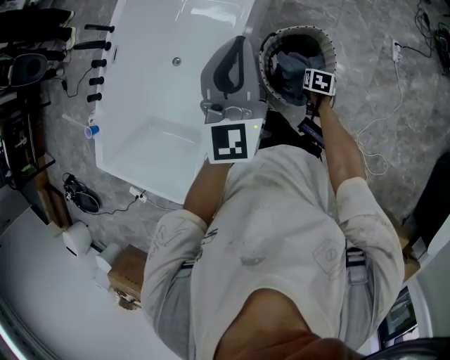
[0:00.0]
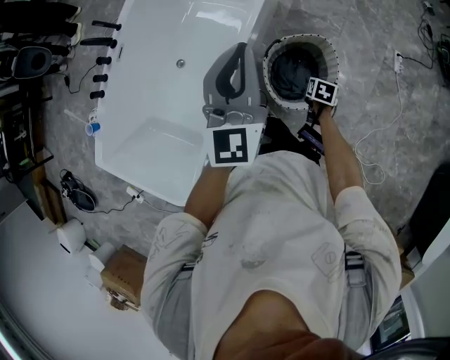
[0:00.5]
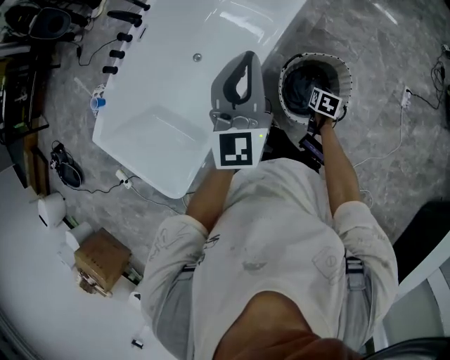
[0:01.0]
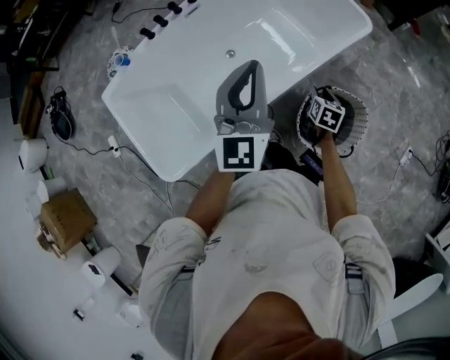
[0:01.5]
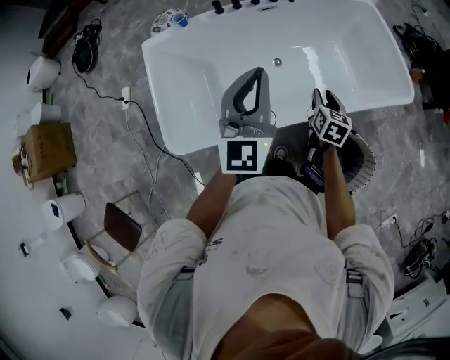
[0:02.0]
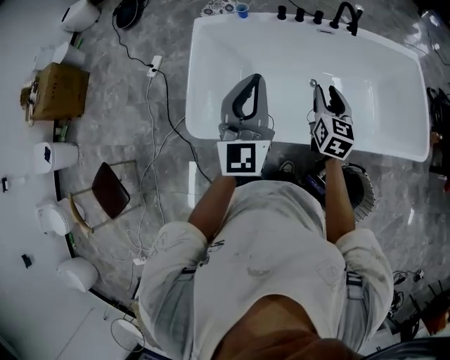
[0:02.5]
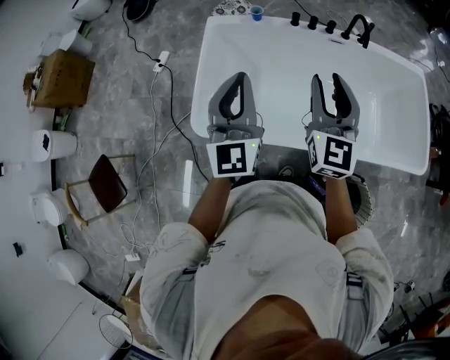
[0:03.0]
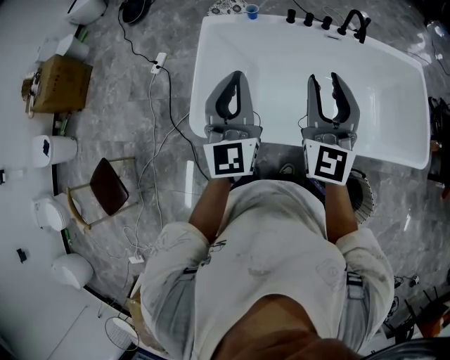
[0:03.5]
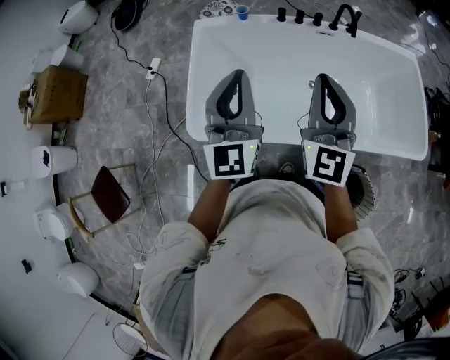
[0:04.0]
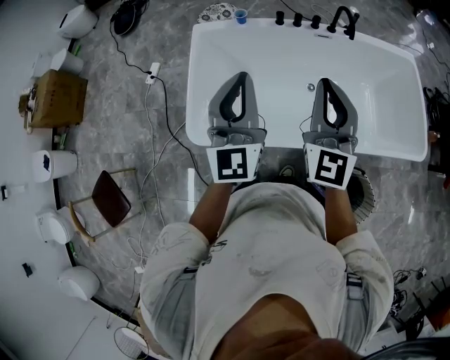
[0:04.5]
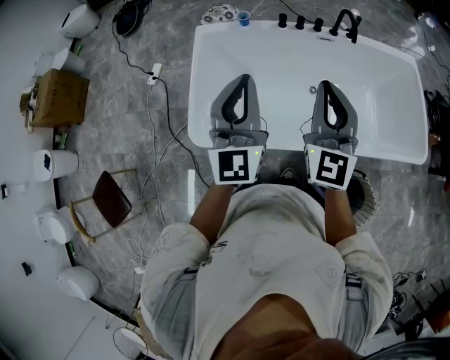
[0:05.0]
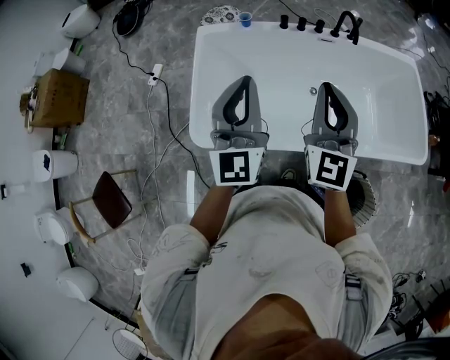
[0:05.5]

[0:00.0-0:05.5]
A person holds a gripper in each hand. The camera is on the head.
0:00.0 to 0:02.0: The right gripper moves approximately 50 cm, and angles its fingers upward, by about 30 degrees, while the left gripper changes place by approximately 35 cm, and swivels roughly 50 degrees.
0:02.0 to 0:03.5: The left gripper ends up about 25 cm from where it was, and swivels approximately 30 degrees. The right gripper goes about 30 cm upward, and angles its fingers upward, by about 40 degrees.
0:03.5 to 0:05.5: The grippers make only small movements.

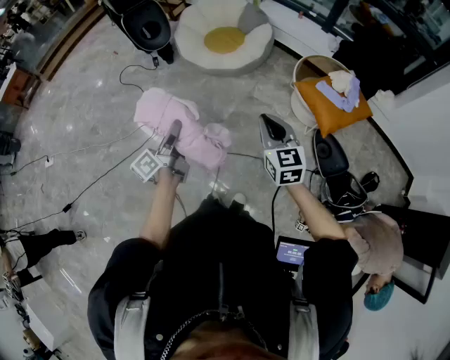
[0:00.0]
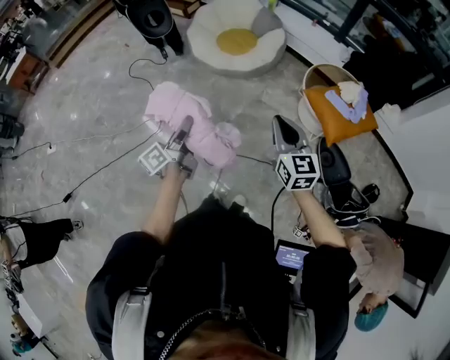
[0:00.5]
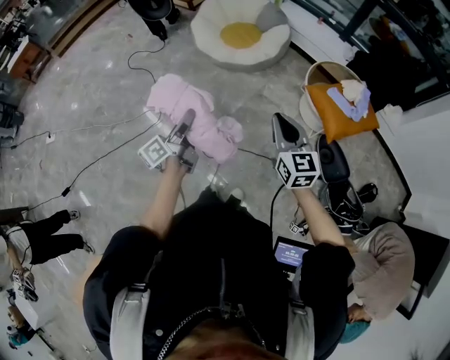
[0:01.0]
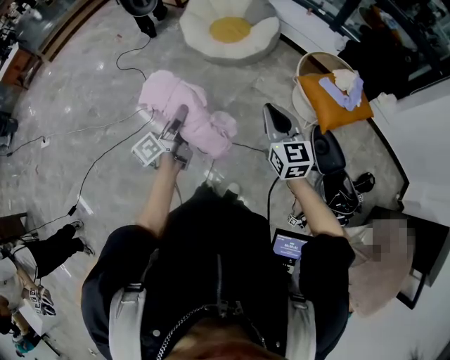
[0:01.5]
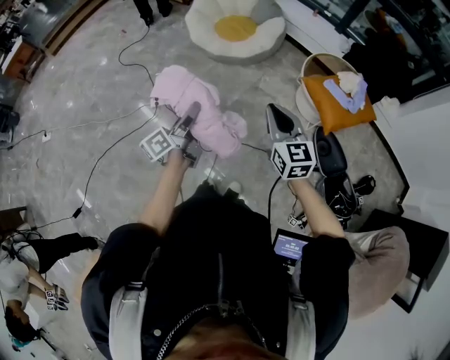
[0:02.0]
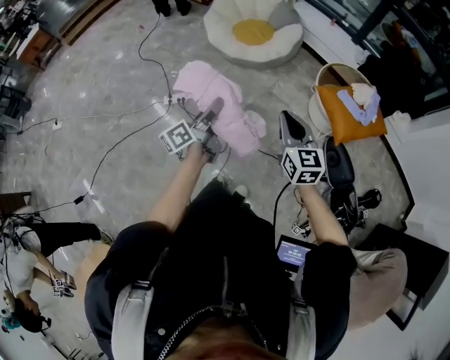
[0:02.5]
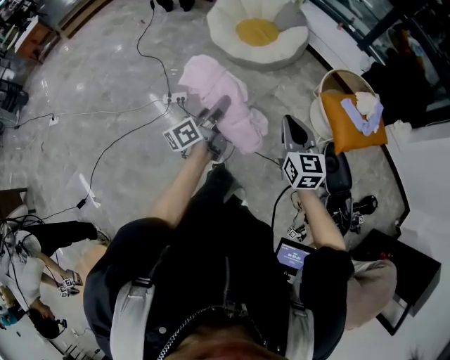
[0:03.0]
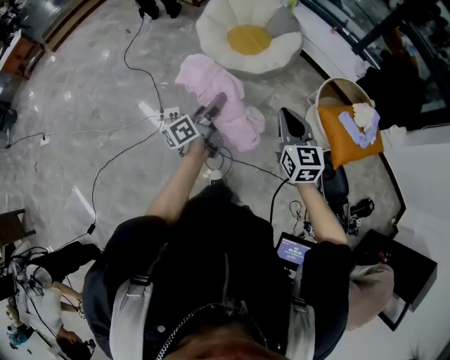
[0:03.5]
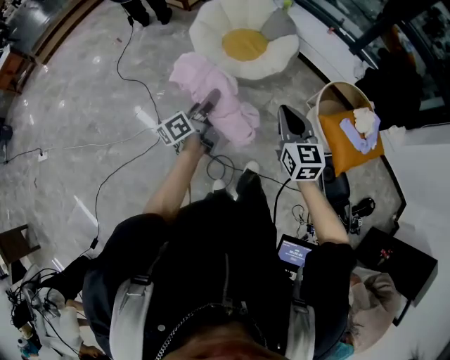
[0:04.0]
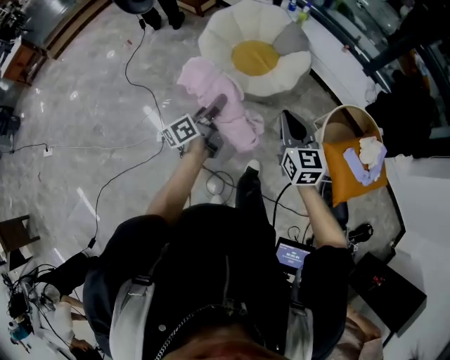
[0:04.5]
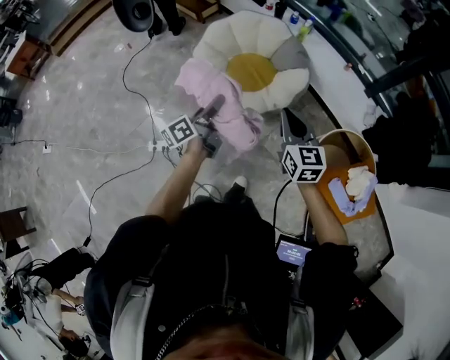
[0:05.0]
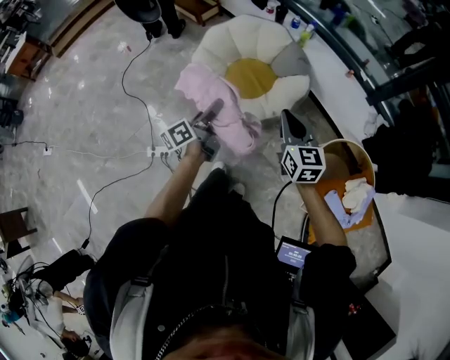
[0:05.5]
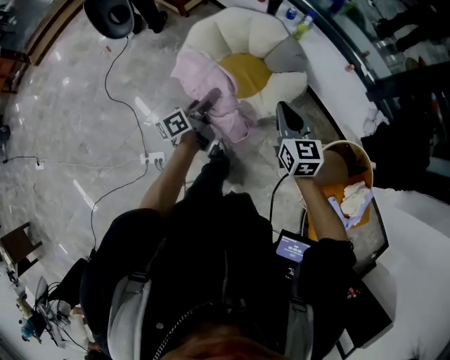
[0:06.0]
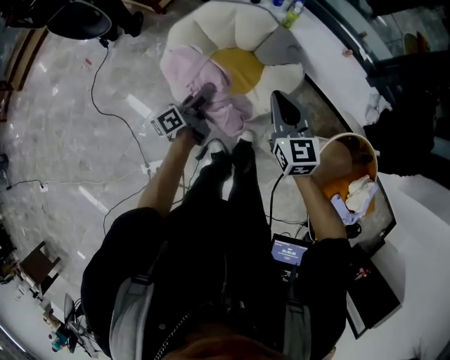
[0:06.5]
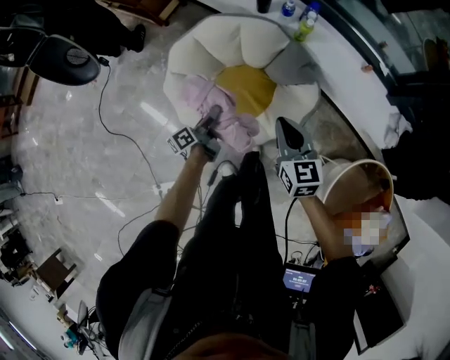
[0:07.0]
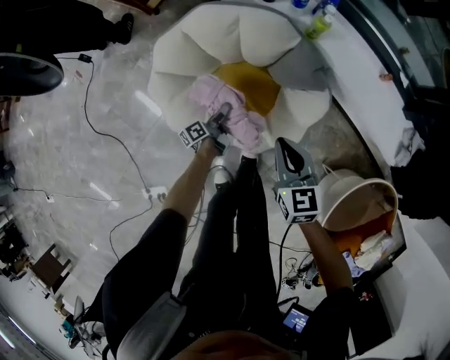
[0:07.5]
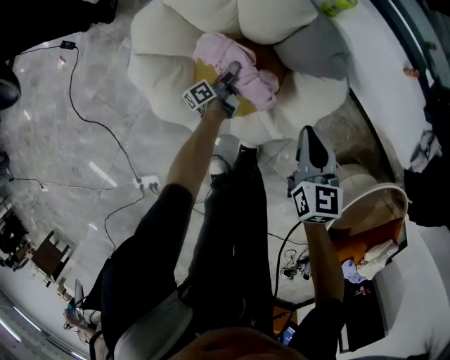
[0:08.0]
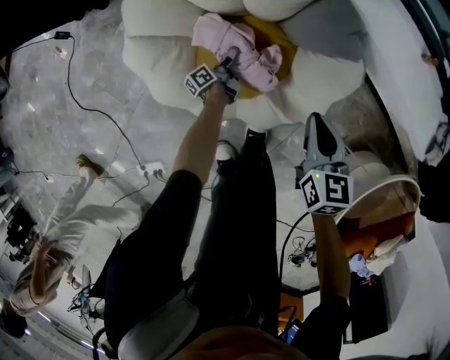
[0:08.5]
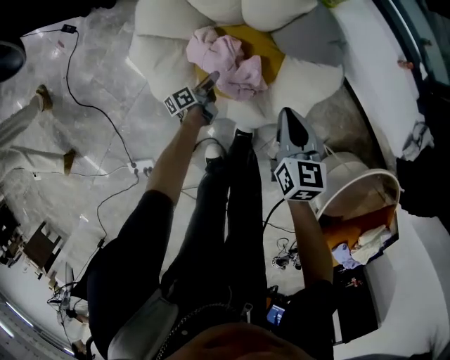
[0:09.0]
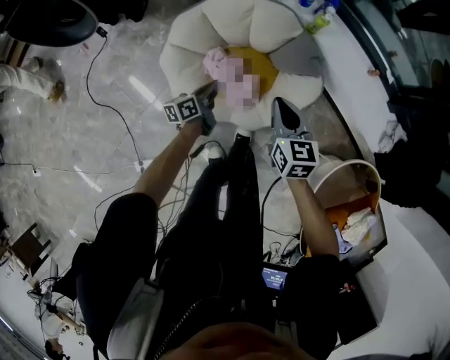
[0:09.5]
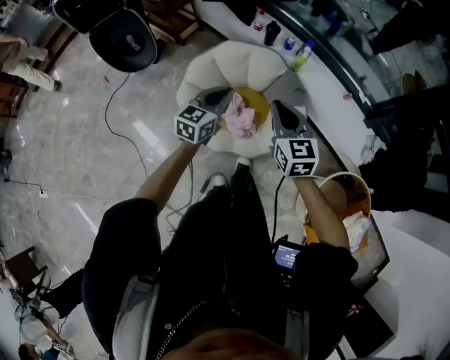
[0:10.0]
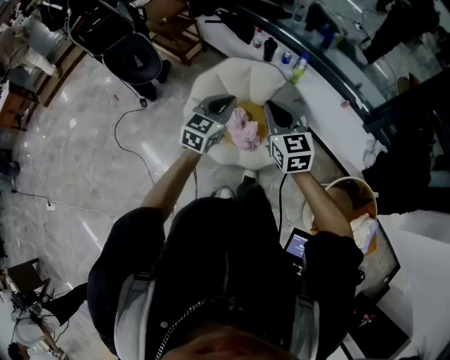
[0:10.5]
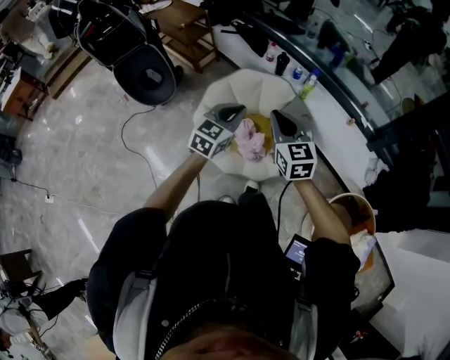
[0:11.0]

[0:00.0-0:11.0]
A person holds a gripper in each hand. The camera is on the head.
0:00.0 to 0:02.0: The left gripper travels to the right by some 5 cm.
0:02.0 to 0:03.5: The two grippers go roughly 20 cm forward.
0:03.5 to 0:05.5: Both grippers are carried forward, about 40 cm.
0:05.5 to 0:07.5: The left gripper travels downward and forward by approximately 70 cm, and swivels about 20 degrees. The right gripper goes about 50 cm forward and downward.
0:07.5 to 0:09.0: Both grippers move downward, approximately 10 cm.
0:09.0 to 0:11.0: Both grippers move upward, approximately 60 cm. The left gripper rolls clockwise, seen from behind, by approximately 80 degrees, and closes; the right gripper turns by approximately 30 degrees.

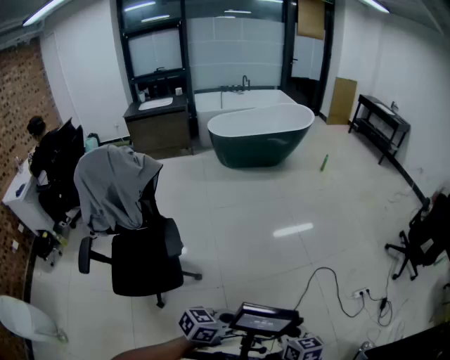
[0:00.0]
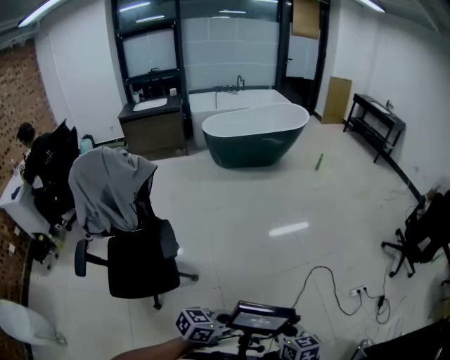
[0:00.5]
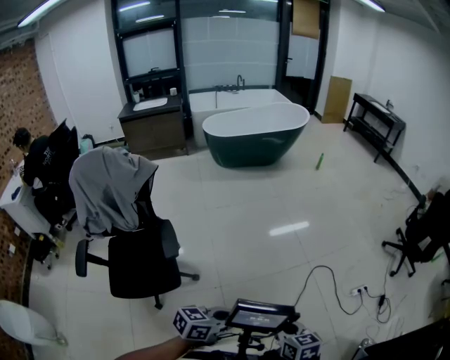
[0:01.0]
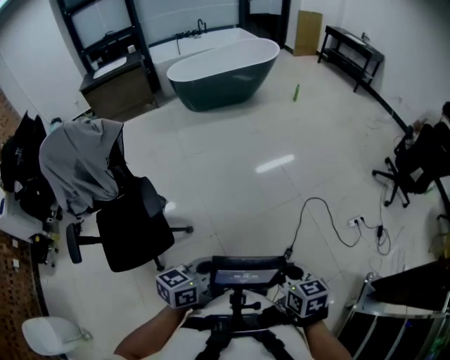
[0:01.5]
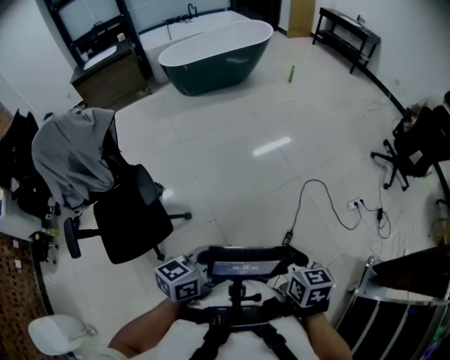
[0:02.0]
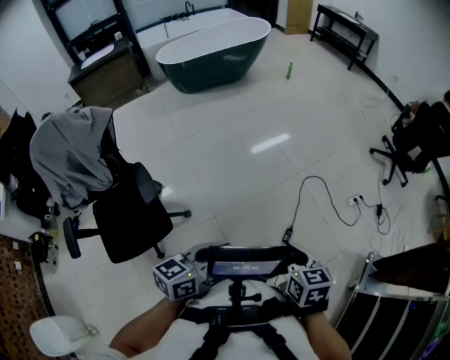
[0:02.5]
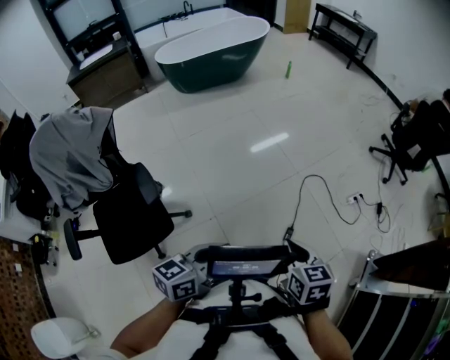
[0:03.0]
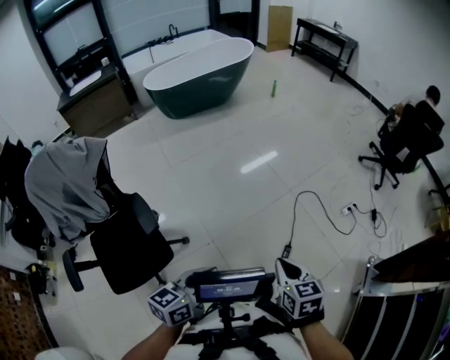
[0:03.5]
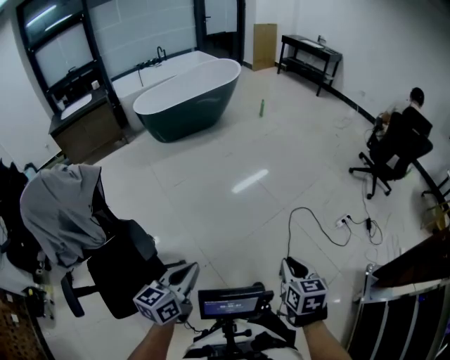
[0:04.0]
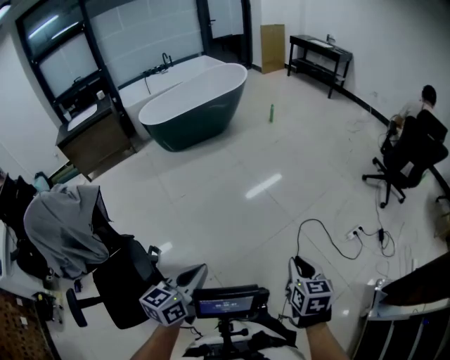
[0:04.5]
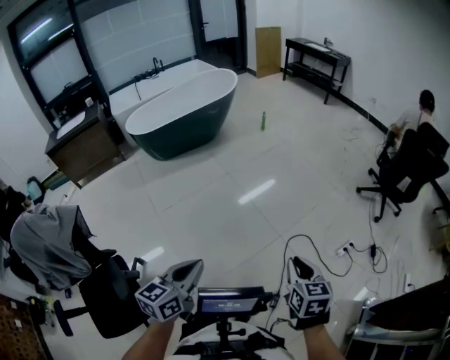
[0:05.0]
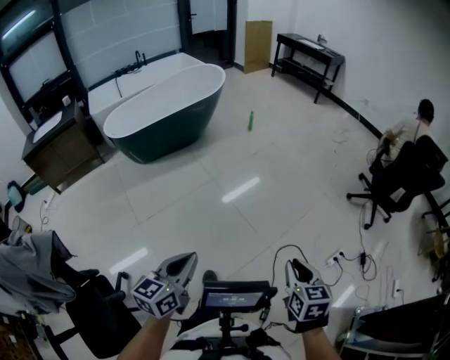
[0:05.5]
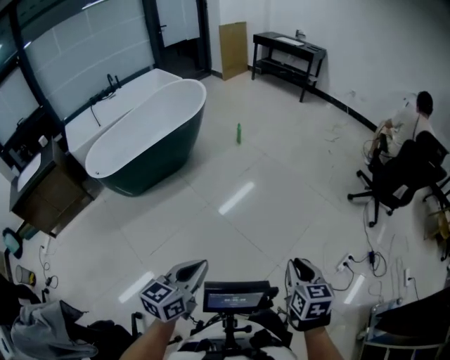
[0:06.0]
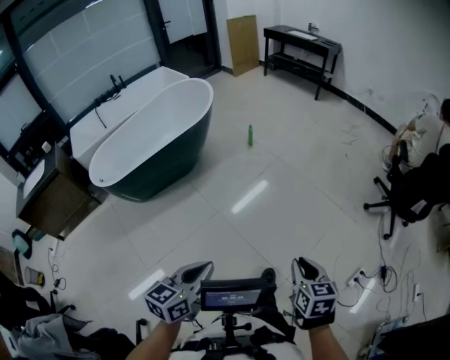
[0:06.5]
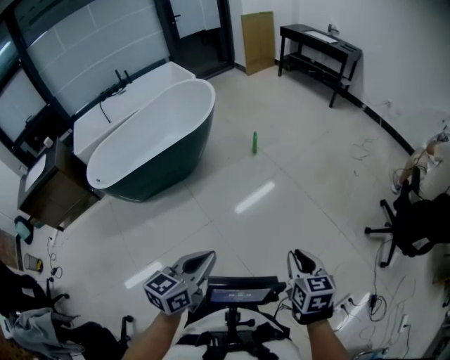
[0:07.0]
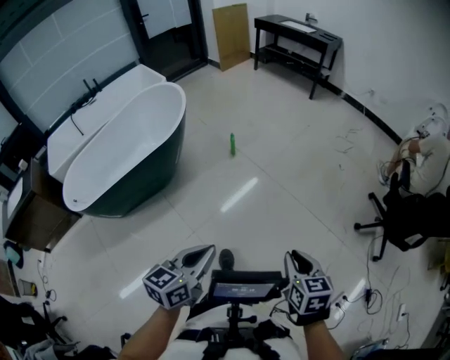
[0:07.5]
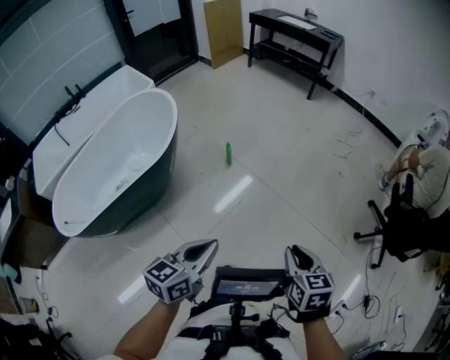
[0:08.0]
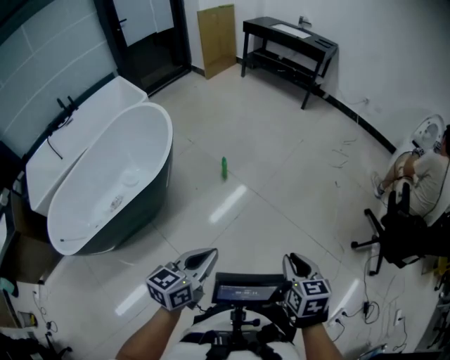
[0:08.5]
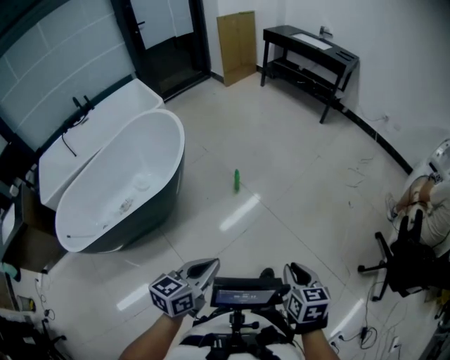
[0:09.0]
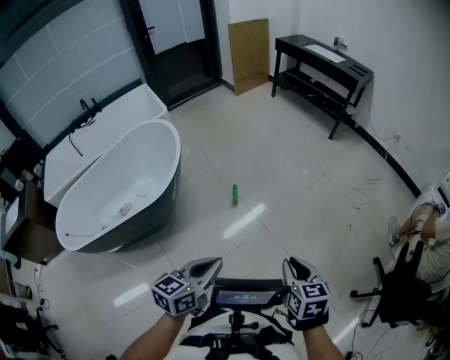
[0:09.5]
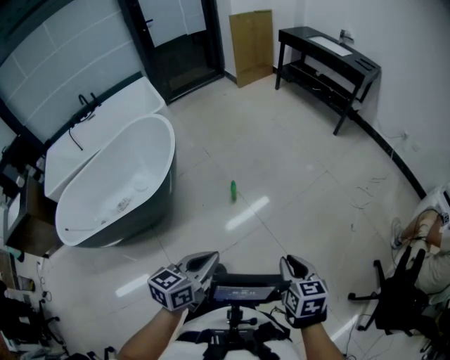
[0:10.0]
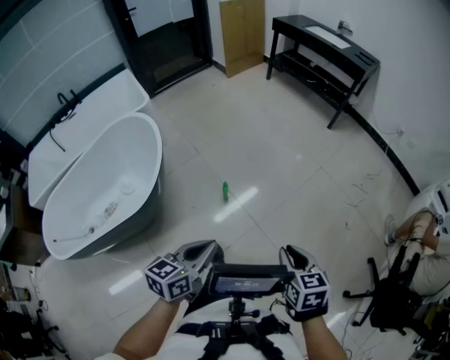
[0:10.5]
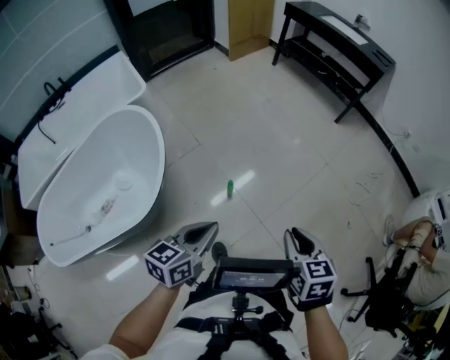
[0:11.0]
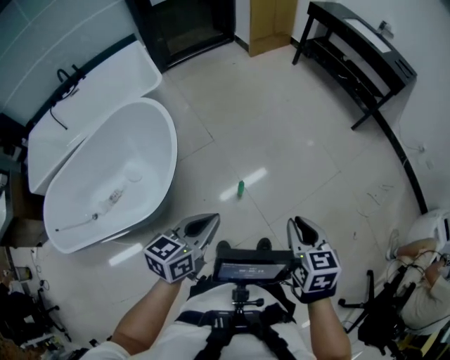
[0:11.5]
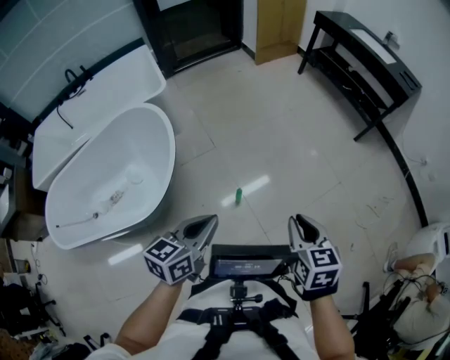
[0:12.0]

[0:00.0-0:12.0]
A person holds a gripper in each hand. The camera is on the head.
0:00.0 to 0:02.0: The left gripper moves to the left, about 5 cm.
0:02.0 to 0:04.0: The left gripper goes about 15 cm to the left. The right gripper is displaced forward by roughly 5 cm.
0:04.0 to 0:06.0: The two grippers travel together, forward, approximately 50 cm.
0:06.0 to 0:08.0: The two grippers travel together, forward, approximately 60 cm.
0:08.0 to 0:10.0: The two grippers go approximately 25 cm forward.
0:10.0 to 0:12.0: The right gripper shifts about 35 cm forward, while the left gripper is displaced forward and to the left by approximately 35 cm.
